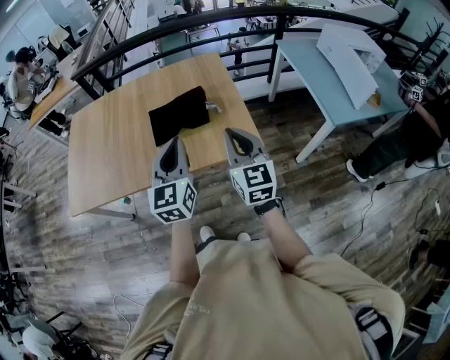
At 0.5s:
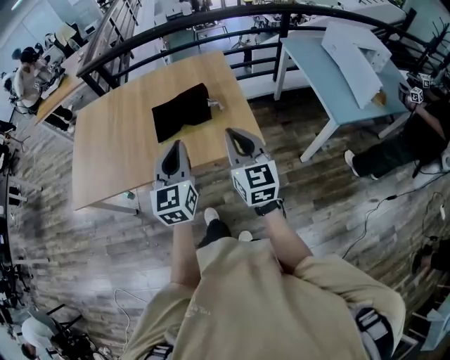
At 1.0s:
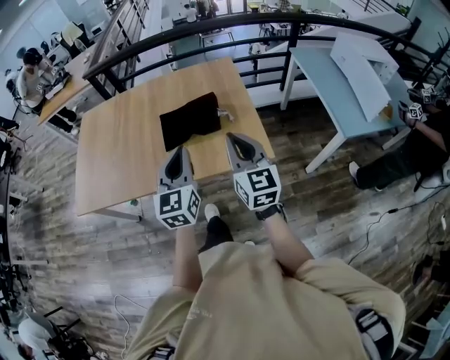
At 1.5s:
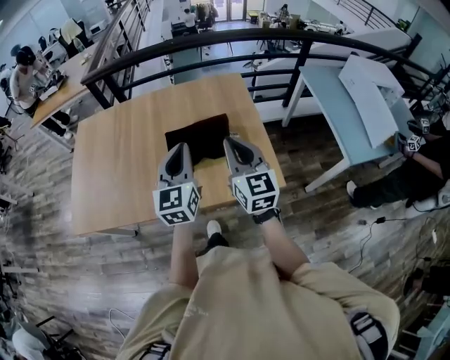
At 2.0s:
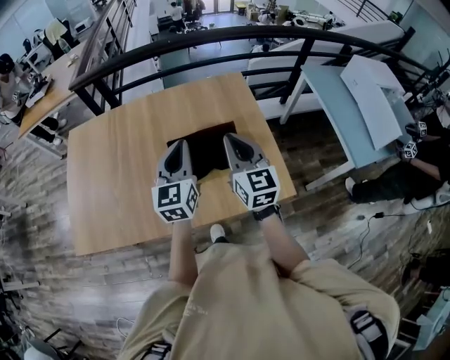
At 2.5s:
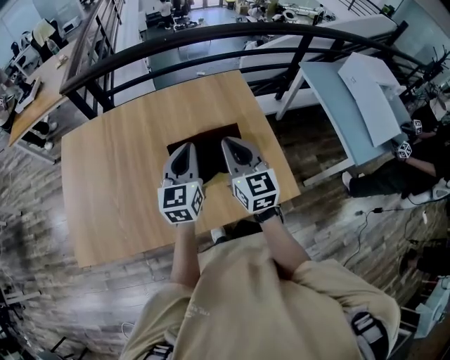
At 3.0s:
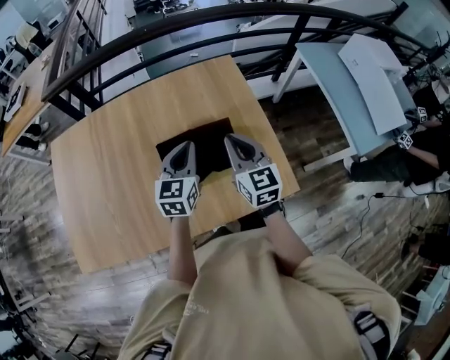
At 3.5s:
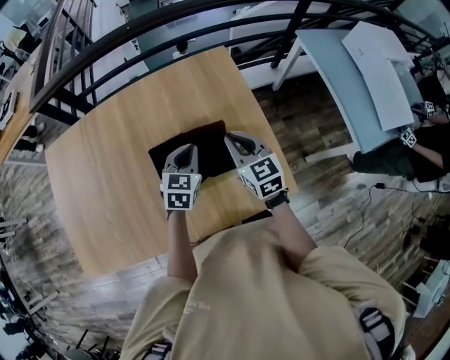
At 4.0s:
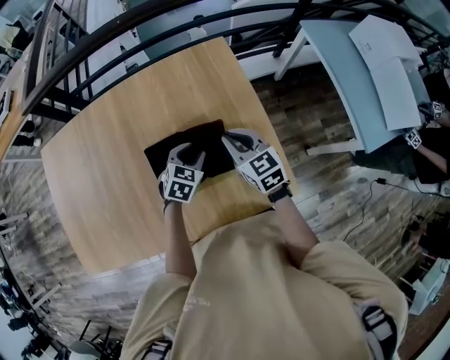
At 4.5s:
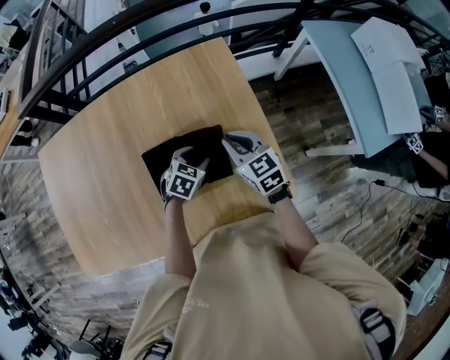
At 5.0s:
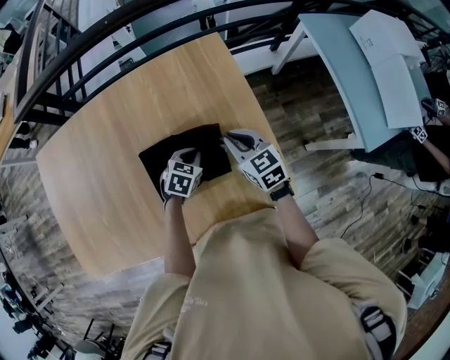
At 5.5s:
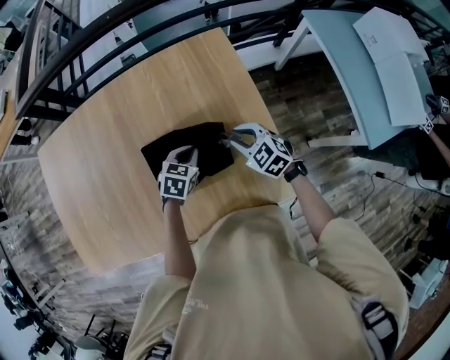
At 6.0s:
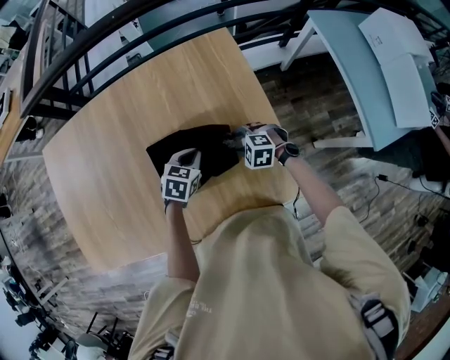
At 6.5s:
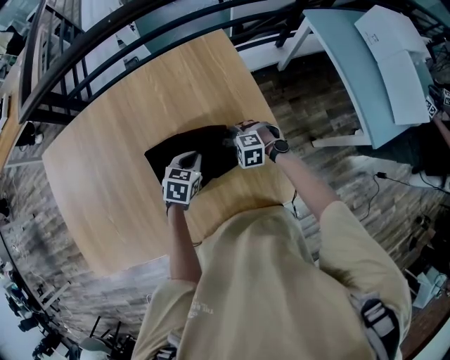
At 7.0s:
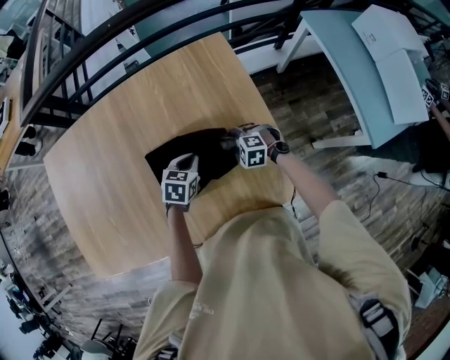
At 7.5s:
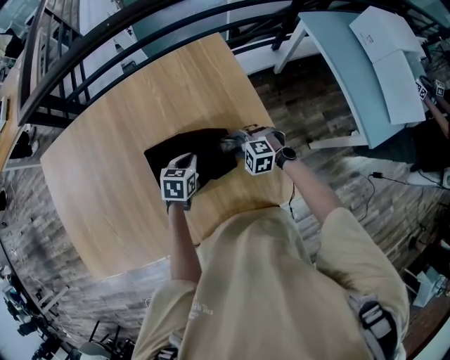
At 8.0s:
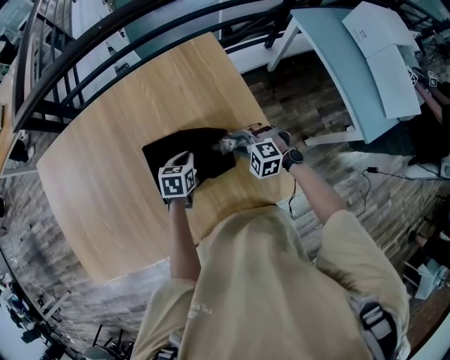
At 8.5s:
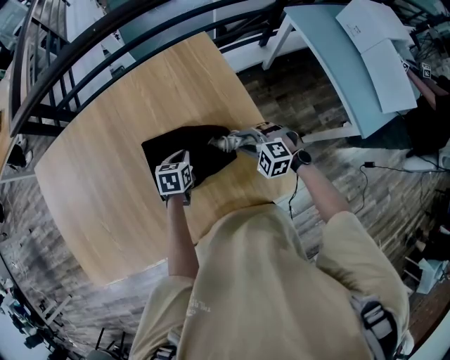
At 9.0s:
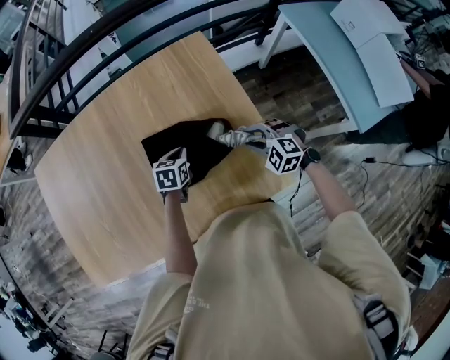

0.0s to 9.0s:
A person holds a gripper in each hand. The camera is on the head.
0.0s to 2.0s: The grippers both shift forward and to the left by some 30 cm.
2.0s to 4.5s: The two grippers go roughly 30 cm downward and forward. The right gripper turns by about 30 degrees. The left gripper points its fingers approximately 50 degrees further downward, and opens.
4.5s to 7.0s: The right gripper travels downward by some 20 cm, points its fingers some 30 degrees further downward, and opens its fingers; the left gripper closes up.
7.0s to 9.0s: The right gripper moves upward, to the right and backward, roughly 15 cm.

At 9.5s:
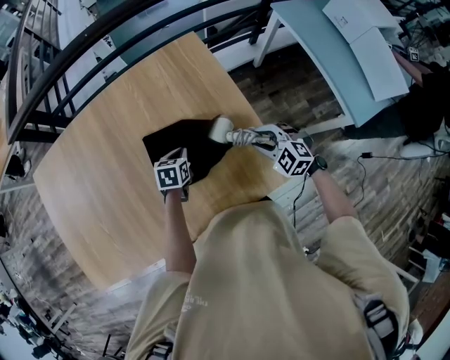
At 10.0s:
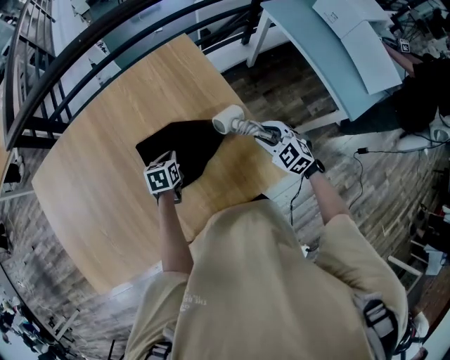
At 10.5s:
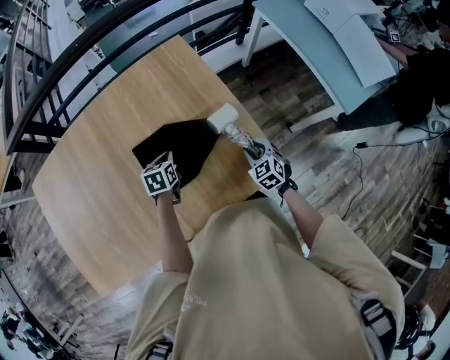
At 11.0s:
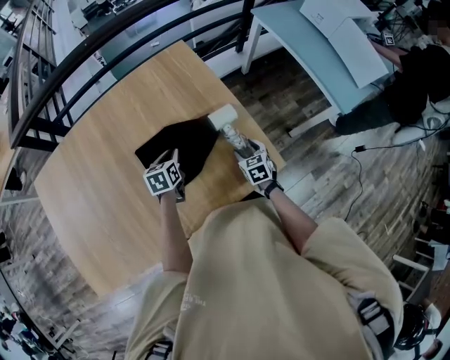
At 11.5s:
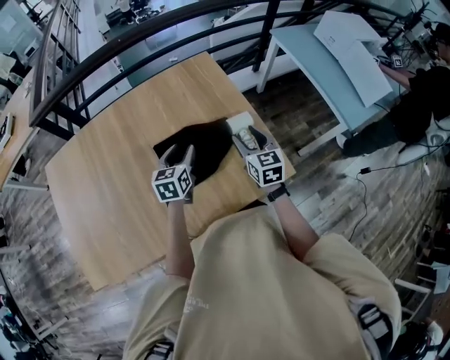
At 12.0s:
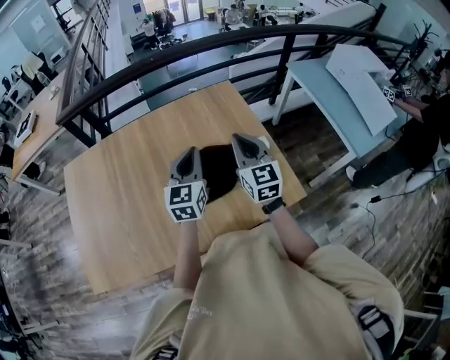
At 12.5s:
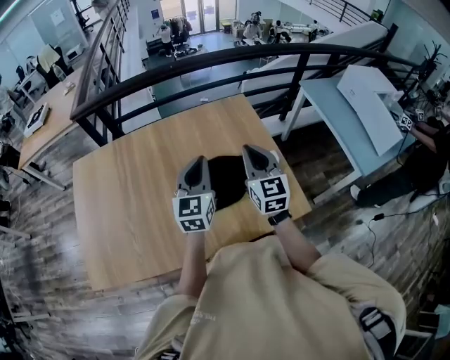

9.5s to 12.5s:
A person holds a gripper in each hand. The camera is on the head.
9.5s to 11.0s: The right gripper goes some 10 cm downward and backward, and rotates around the line of its fingers by some 50 degrees, clockwise from behind; the left gripper moves about 5 cm.
11.0s to 12.5s: The left gripper travels upward by about 25 cm, points its fingers approximately 40 degrees further upward, and opens, then closes once more. Meanwhile the right gripper shifts approximately 35 cm upward and to the left, tips its fingers upward by some 40 degrees, and closes up.

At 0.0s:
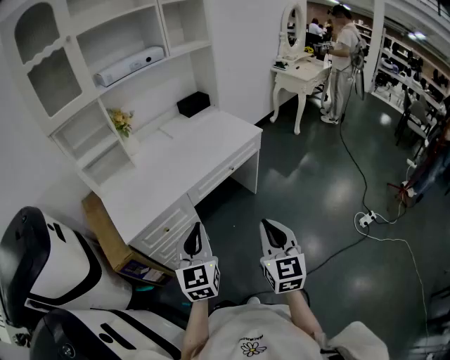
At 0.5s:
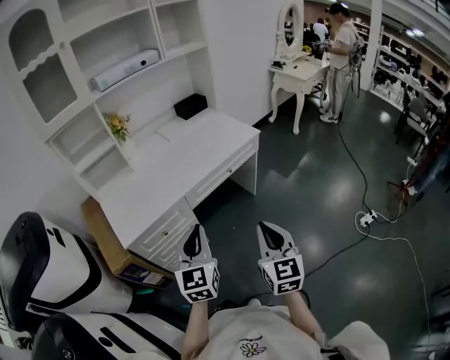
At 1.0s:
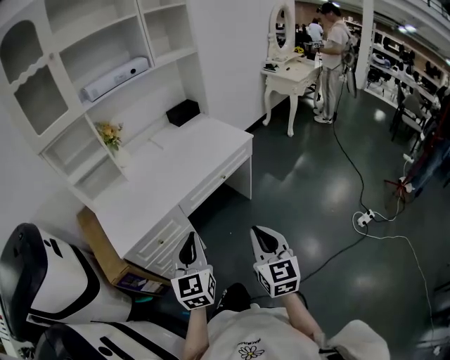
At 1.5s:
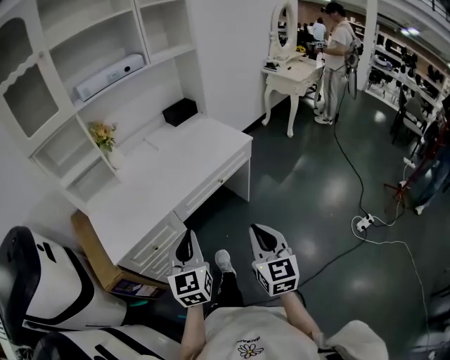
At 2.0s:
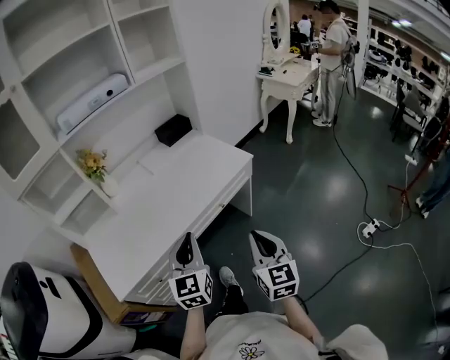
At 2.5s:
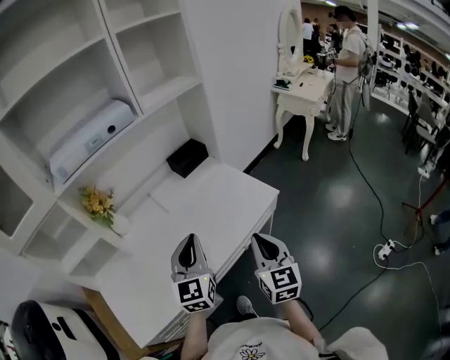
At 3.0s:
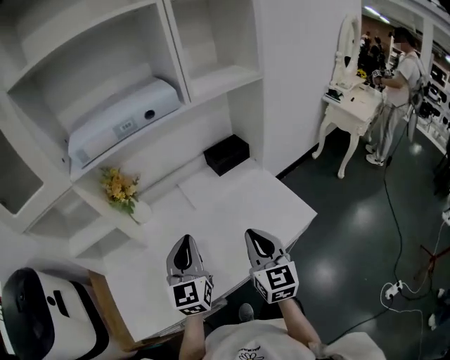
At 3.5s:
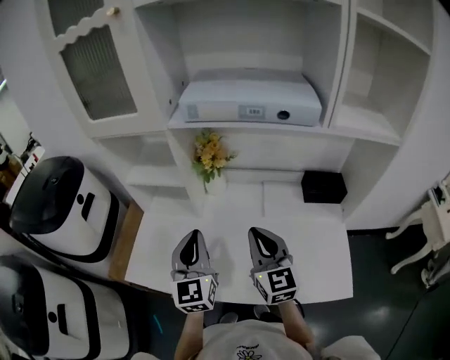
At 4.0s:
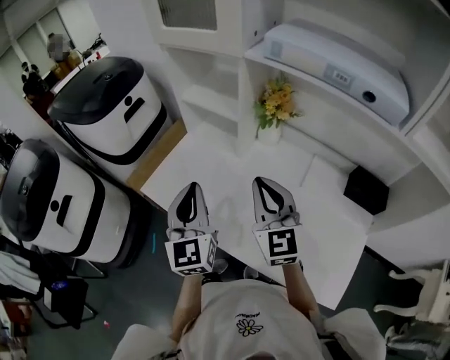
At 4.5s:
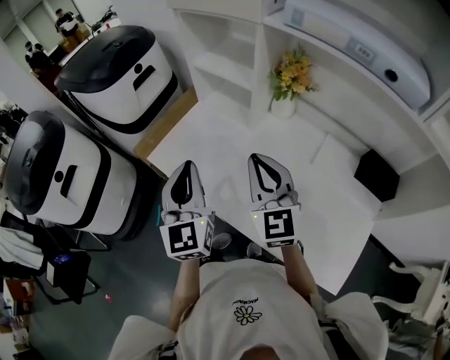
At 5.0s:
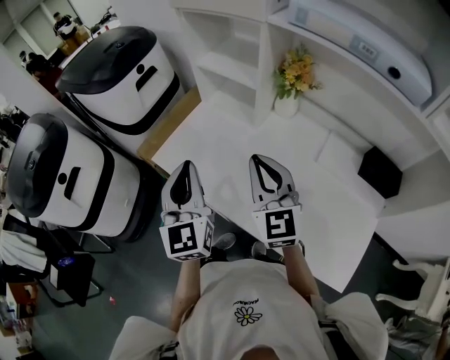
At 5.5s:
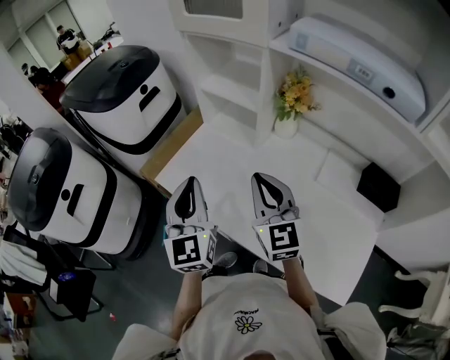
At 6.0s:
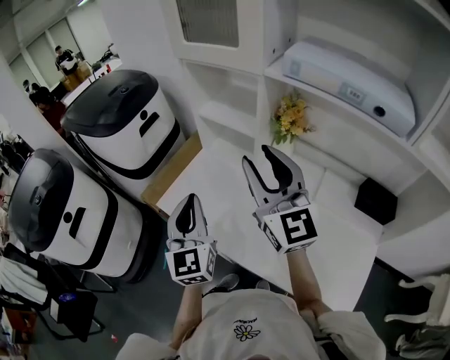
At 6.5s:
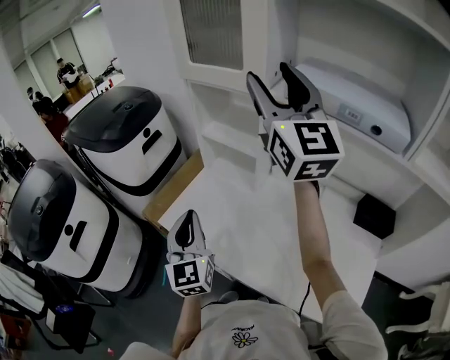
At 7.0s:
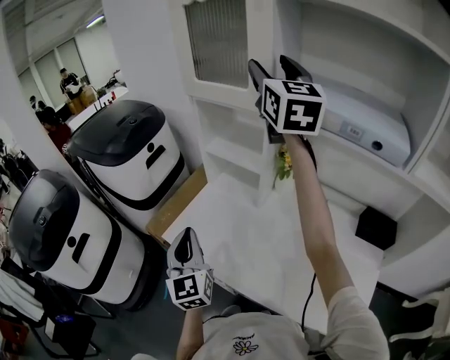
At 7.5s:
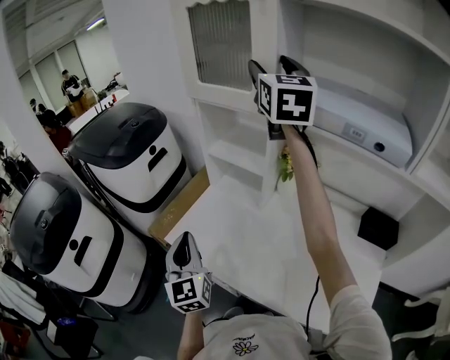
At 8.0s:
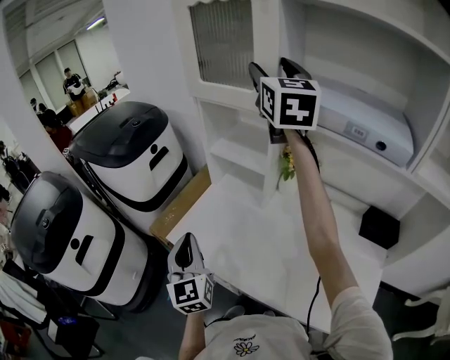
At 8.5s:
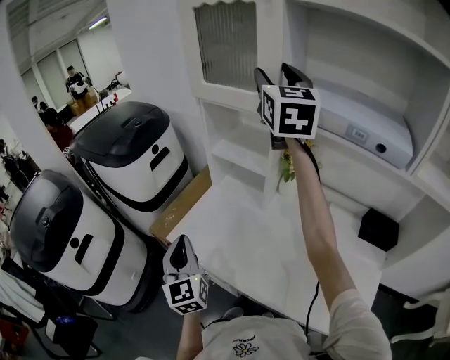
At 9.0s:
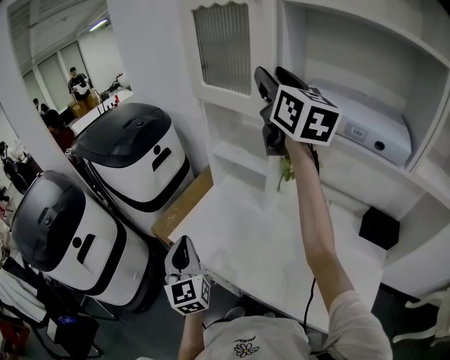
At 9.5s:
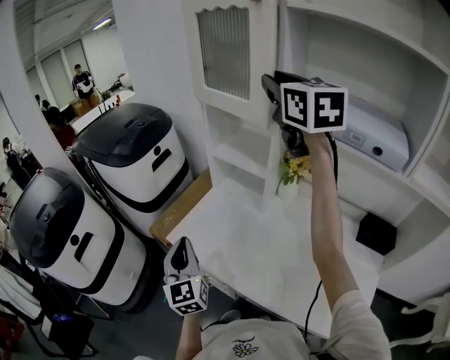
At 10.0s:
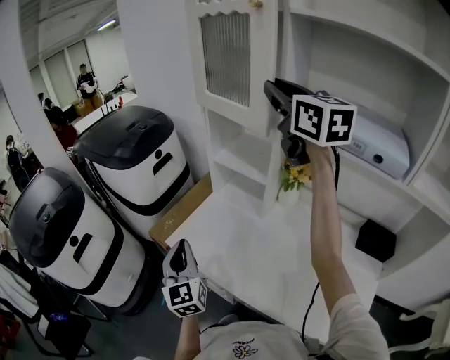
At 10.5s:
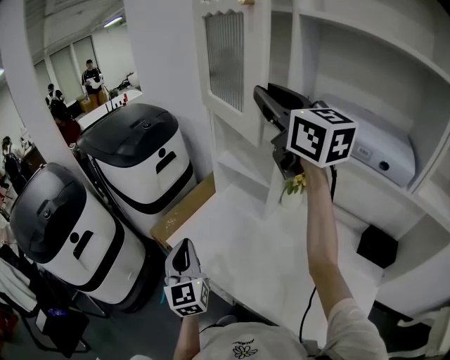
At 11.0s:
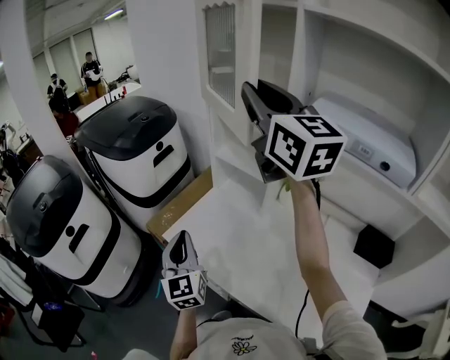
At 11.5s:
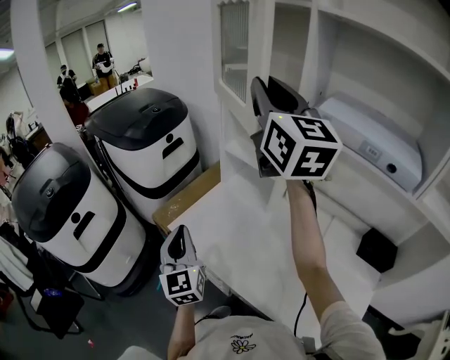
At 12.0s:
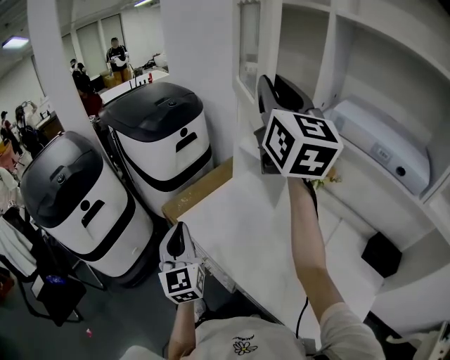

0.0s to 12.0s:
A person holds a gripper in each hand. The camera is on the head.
0.0s to 2.0s: The grippers both shift forward by approximately 20 cm.
2.0s to 4.0s: The right gripper changes place by approximately 50 cm, and rotates some 80 degrees. Meanwhile the left gripper ends up roughly 30 cm from where it was, and changes its angle by about 80 degrees.
4.0s to 6.0s: The left gripper is displaced to the left by roughly 5 cm. The right gripper heads upward and to the left, covering roughly 15 cm, and opens up.
6.0s to 8.0s: The right gripper is displaced upward and forward by roughly 30 cm, and opens, while the left gripper goes some 5 cm to the left.
8.0s to 10.0s: The right gripper changes its angle by approximately 20 degrees, and closes up.
10.0s to 12.0s: The right gripper travels to the left by about 10 cm.

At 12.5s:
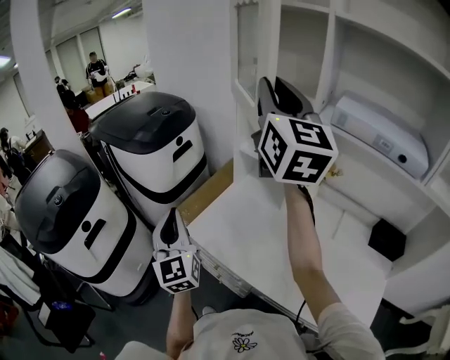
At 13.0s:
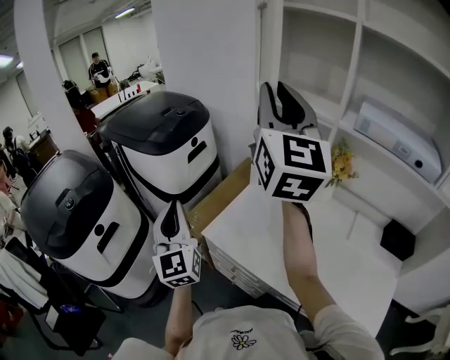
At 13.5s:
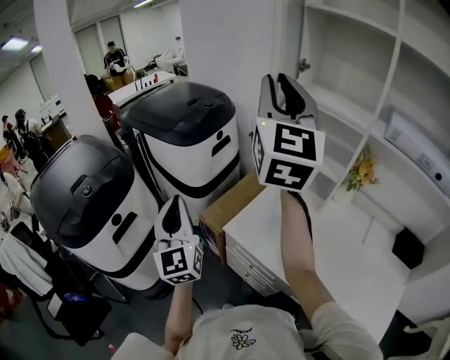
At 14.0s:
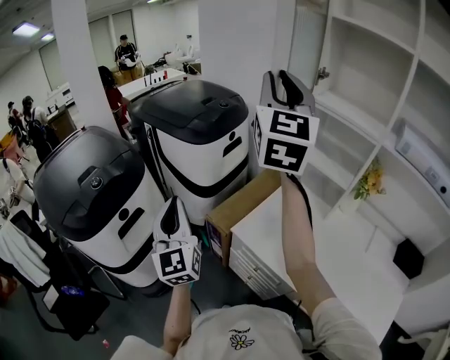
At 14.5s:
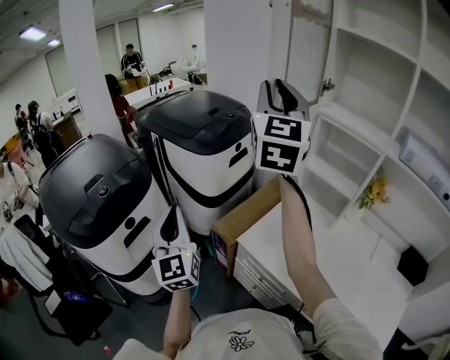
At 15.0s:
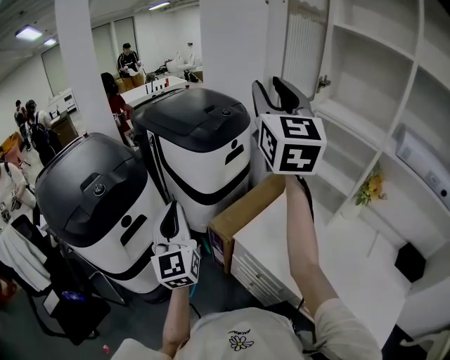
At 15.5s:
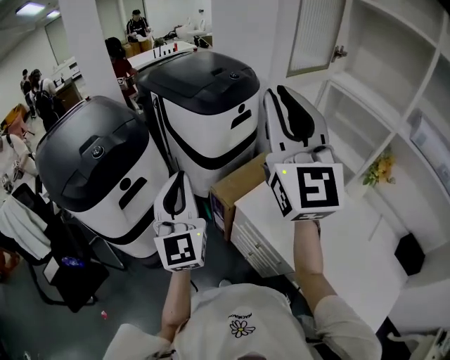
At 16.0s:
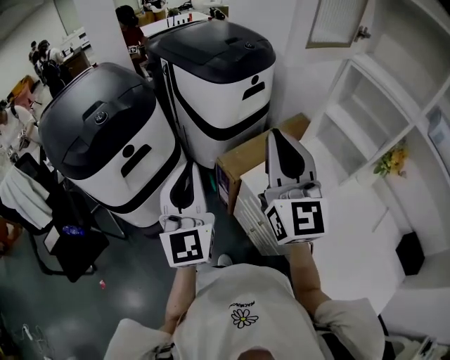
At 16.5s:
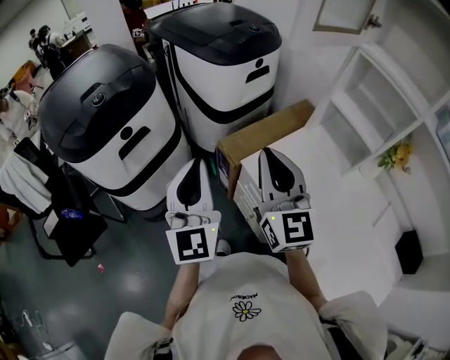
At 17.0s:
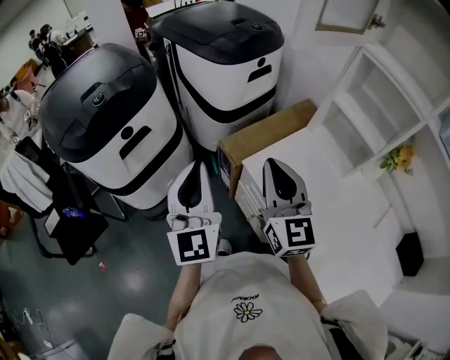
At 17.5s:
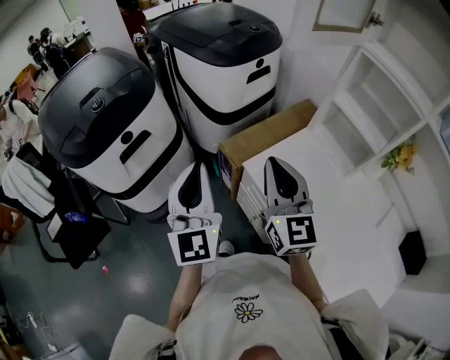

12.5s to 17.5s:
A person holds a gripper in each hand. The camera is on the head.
12.5s to 15.0s: The two grippers go roughly 20 cm to the left.
15.0s to 17.5s: The left gripper goes roughly 10 cm backward and to the right. Meanwhile the right gripper moves downward and backward, roughly 35 cm, swivels approximately 30 degrees, and closes up.
